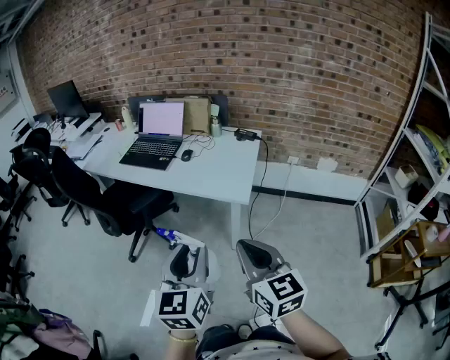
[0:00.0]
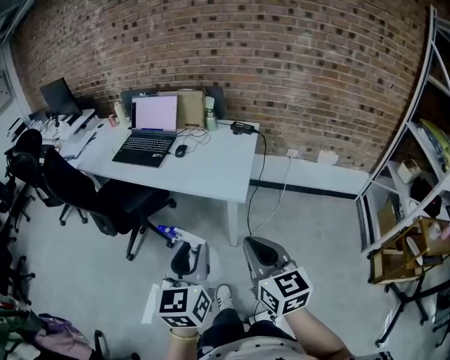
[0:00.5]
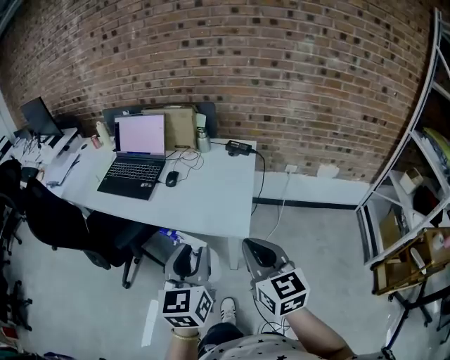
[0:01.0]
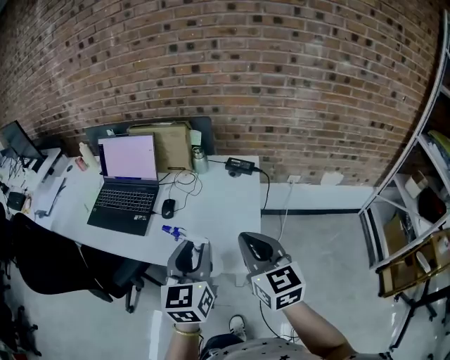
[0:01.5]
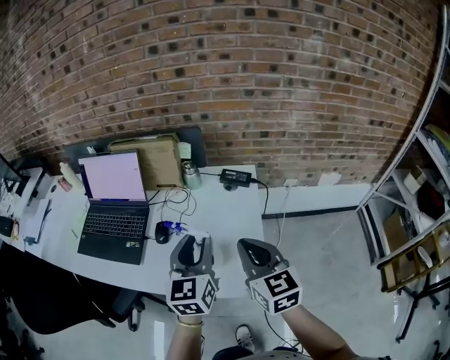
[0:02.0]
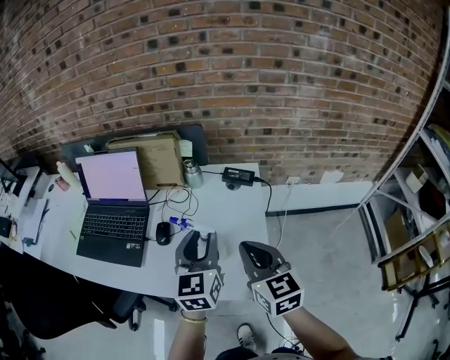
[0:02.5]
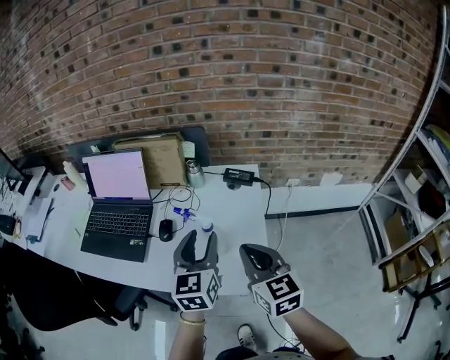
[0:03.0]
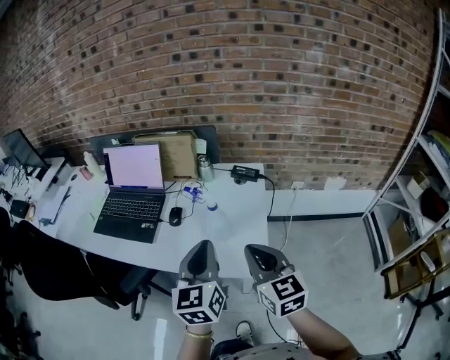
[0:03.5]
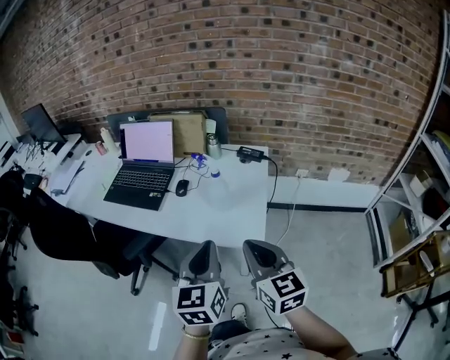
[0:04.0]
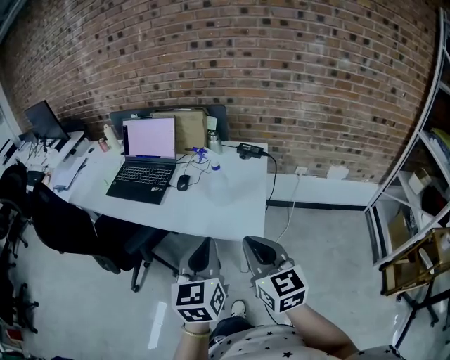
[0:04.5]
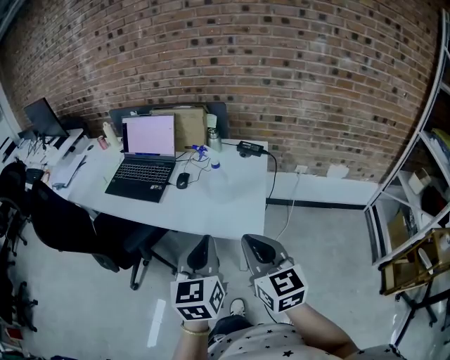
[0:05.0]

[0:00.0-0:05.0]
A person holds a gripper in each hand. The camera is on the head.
0:00.0 to 0:02.5: The two grippers travel together, forward, roughly 50 cm.
0:02.5 to 0:05.0: Both grippers move backward, roughly 25 cm. The left gripper closes.

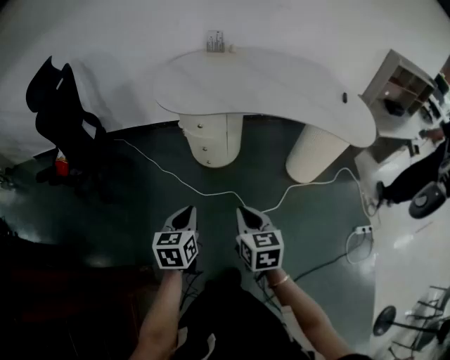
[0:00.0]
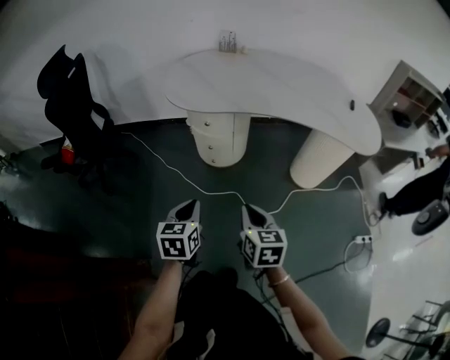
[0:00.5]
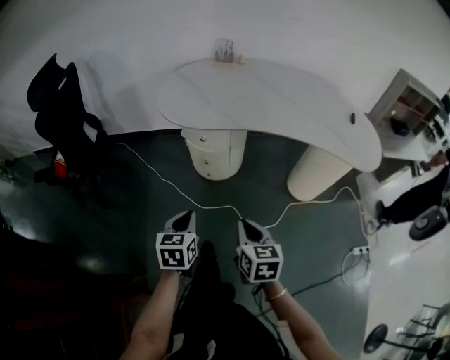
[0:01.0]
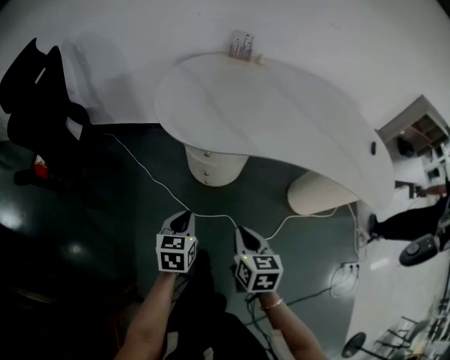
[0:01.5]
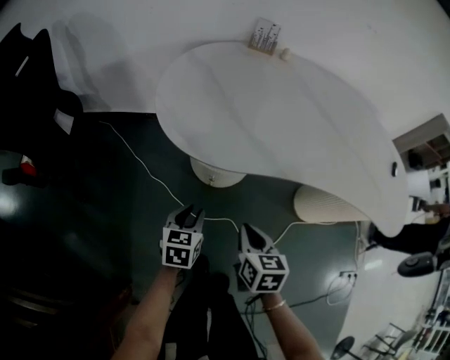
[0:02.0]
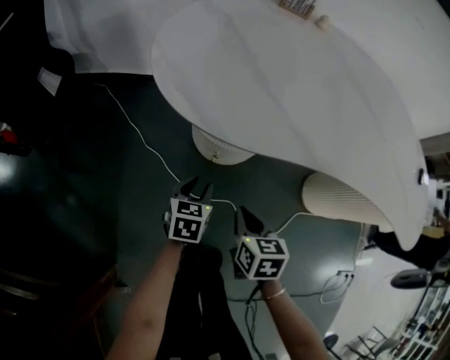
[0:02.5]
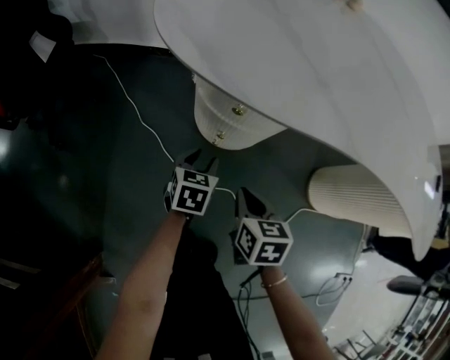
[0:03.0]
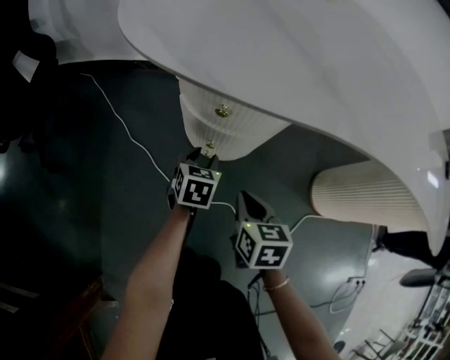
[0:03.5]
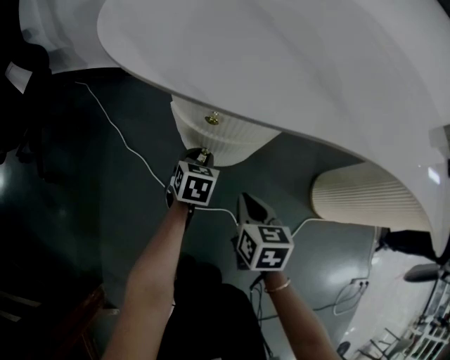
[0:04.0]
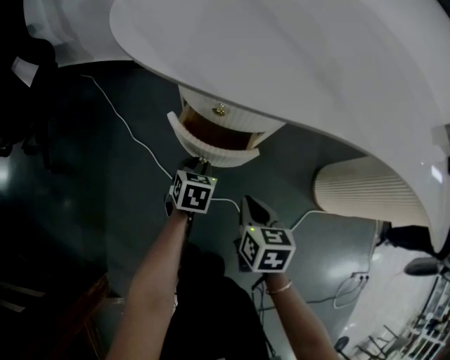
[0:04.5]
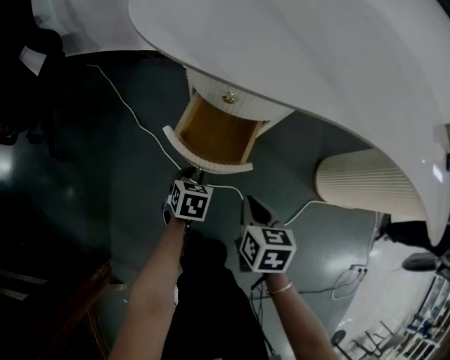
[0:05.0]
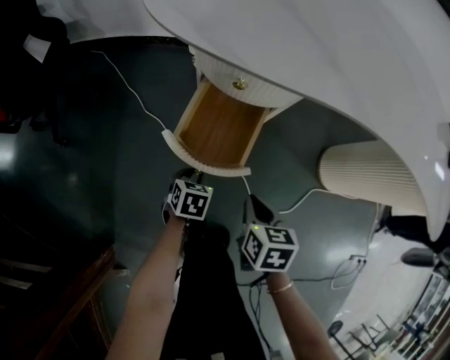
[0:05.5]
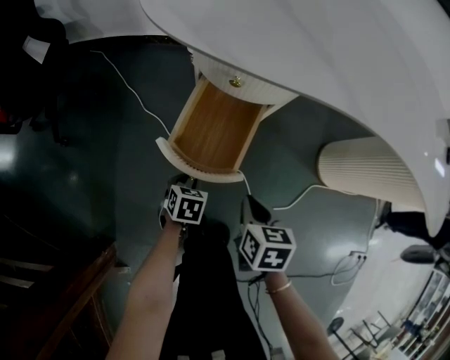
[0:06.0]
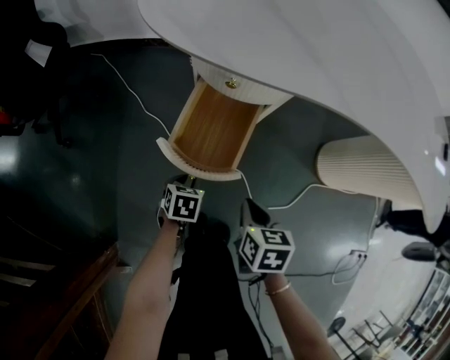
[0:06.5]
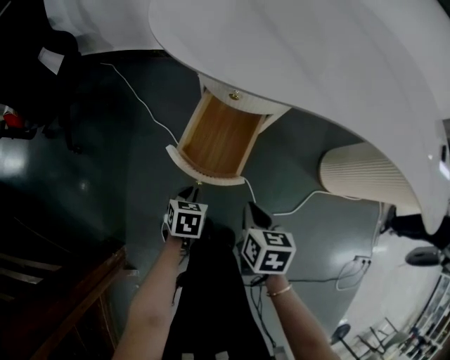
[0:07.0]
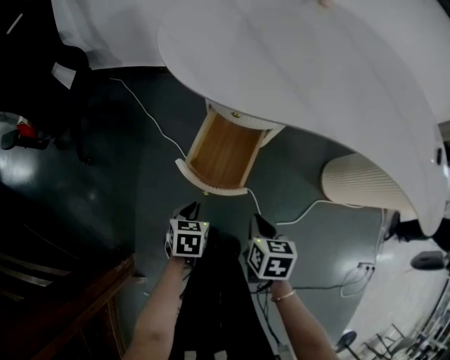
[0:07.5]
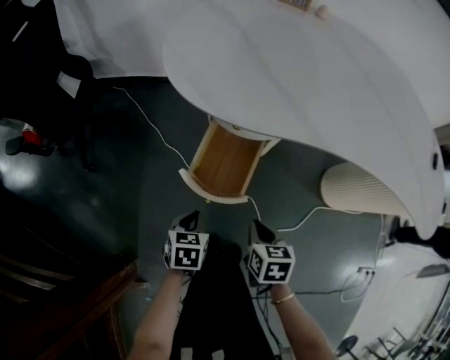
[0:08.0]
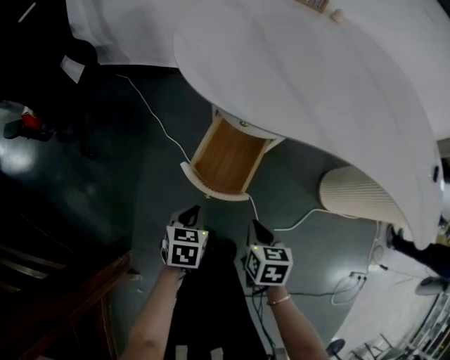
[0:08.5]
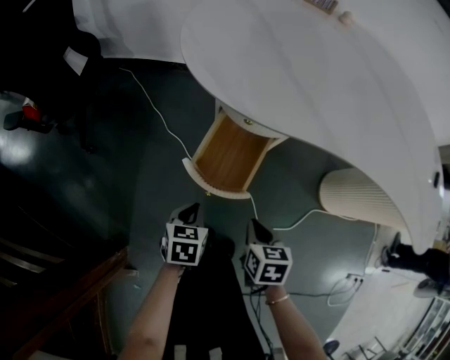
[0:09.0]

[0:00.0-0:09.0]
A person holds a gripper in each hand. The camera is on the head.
0:00.0 to 0:02.0: The right gripper is displaced forward by approximately 25 cm. The left gripper is displaced forward and downward by roughly 30 cm, and opens its fingers.
0:02.0 to 0:04.5: The two grippers go about 25 cm downward.
0:04.5 to 0:07.0: The right gripper shifts about 10 cm backward and upward. Meanwhile the left gripper goes approximately 20 cm backward.
0:07.0 to 0:09.0: The left gripper moves upward, some 10 cm.

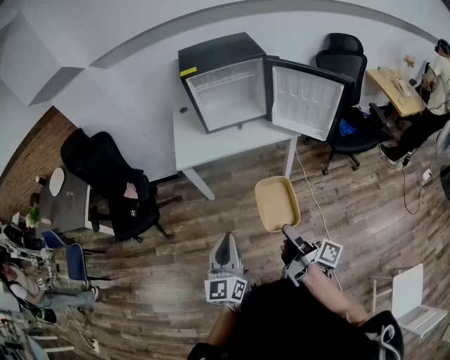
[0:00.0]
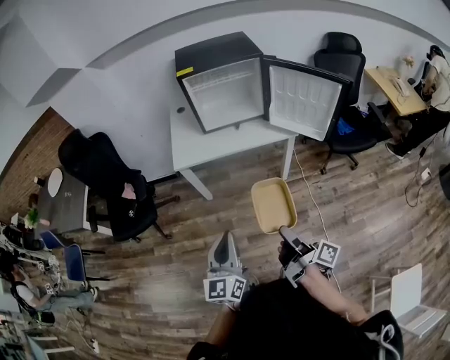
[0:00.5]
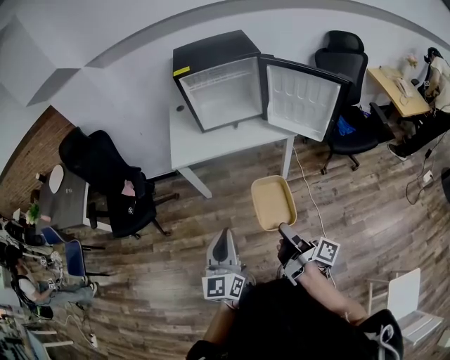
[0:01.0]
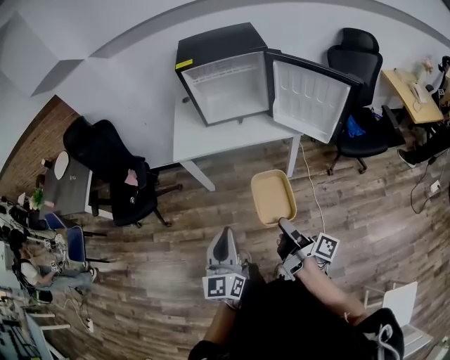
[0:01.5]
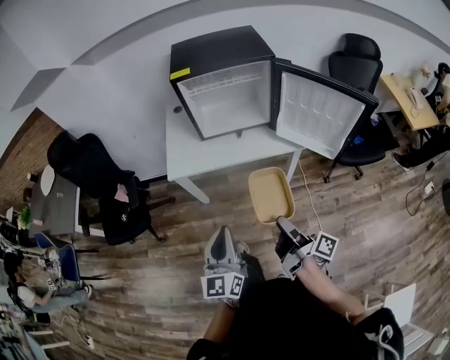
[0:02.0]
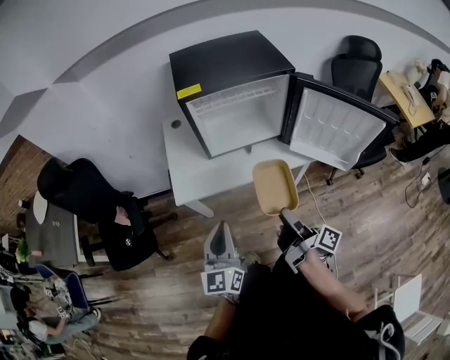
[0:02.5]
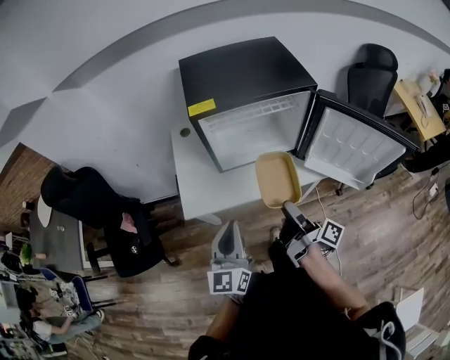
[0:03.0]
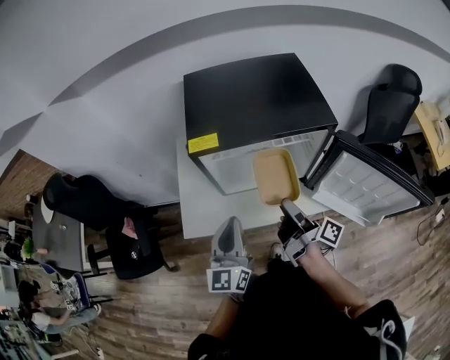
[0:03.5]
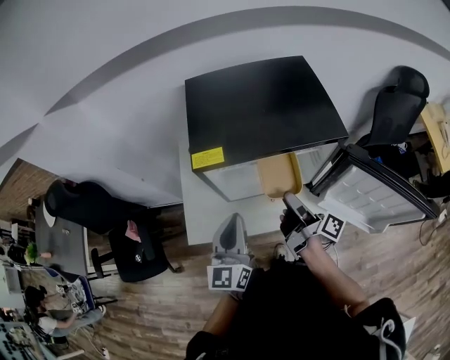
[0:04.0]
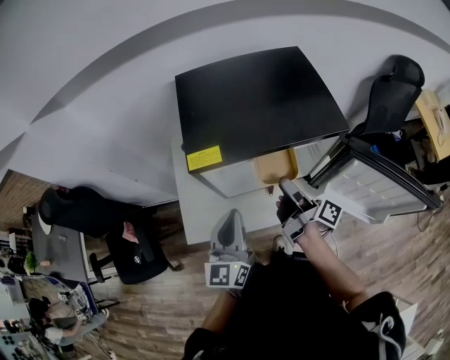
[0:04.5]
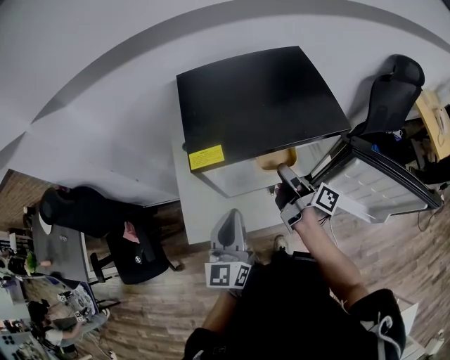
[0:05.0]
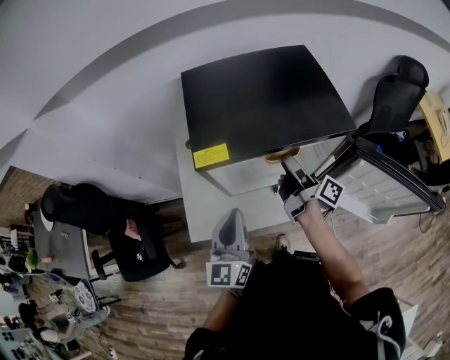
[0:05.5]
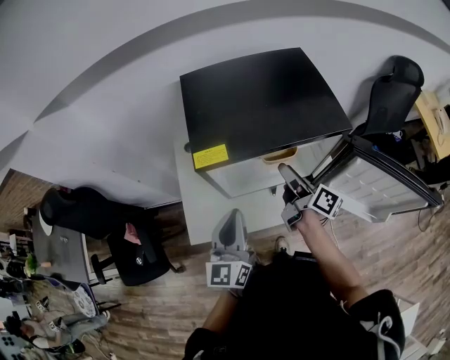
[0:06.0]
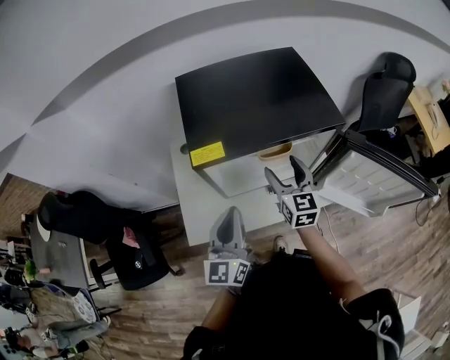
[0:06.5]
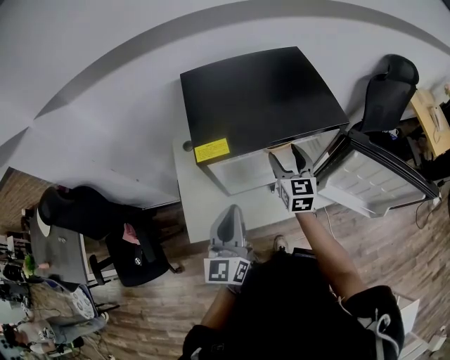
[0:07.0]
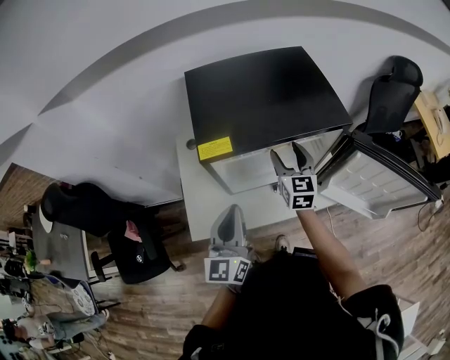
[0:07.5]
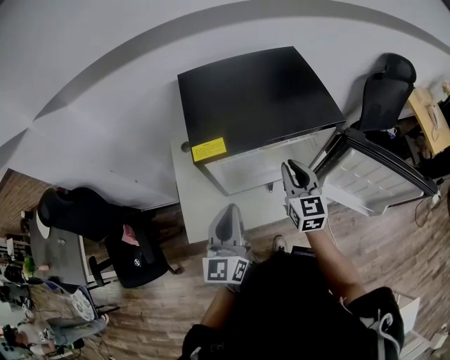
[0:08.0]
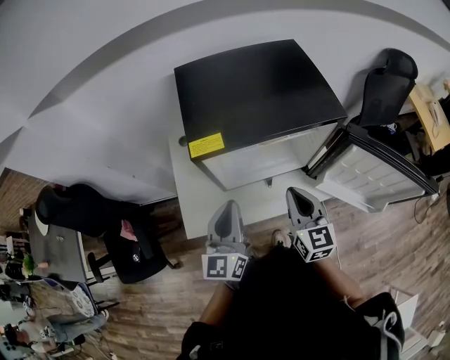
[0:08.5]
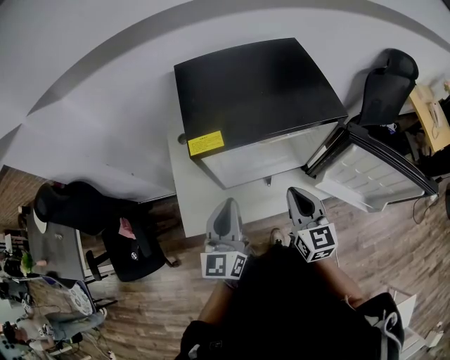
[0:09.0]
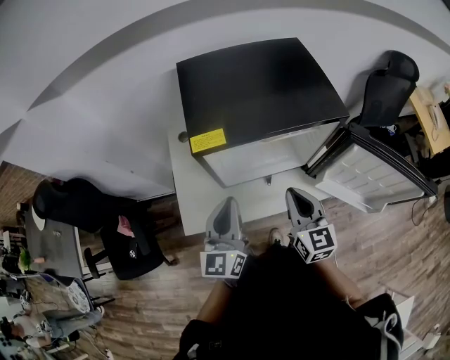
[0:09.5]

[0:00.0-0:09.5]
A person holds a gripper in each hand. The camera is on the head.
0:00.0 to 0:02.0: The two grippers go about 15 cm forward.
0:02.0 to 0:04.0: The two grippers travel together, forward, some 40 cm.
0:04.0 to 0:05.5: The right gripper goes some 10 cm forward.
0:05.5 to 0:07.5: The right gripper rotates around the line of its fingers by about 80 degrees, counterclockwise from behind.
0:07.5 to 0:09.5: The right gripper heads backward, covering roughly 15 cm, and closes up.

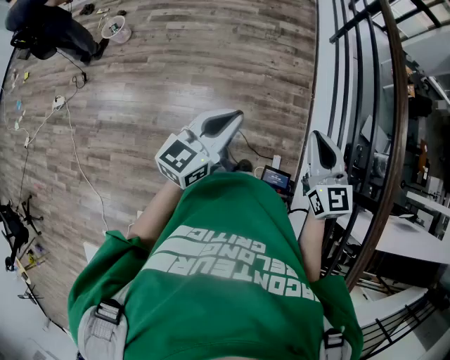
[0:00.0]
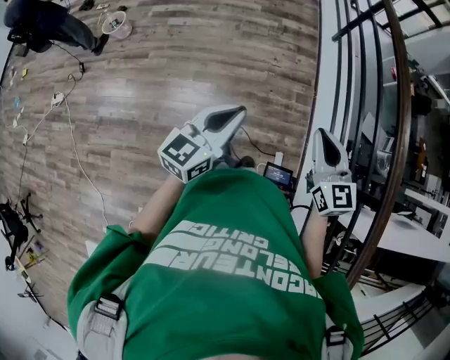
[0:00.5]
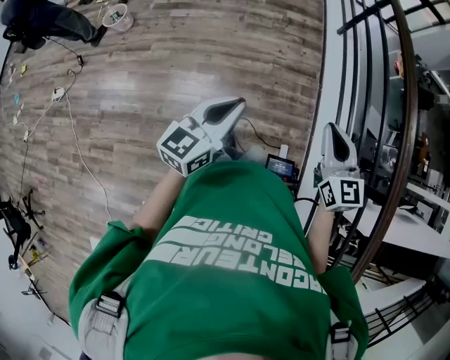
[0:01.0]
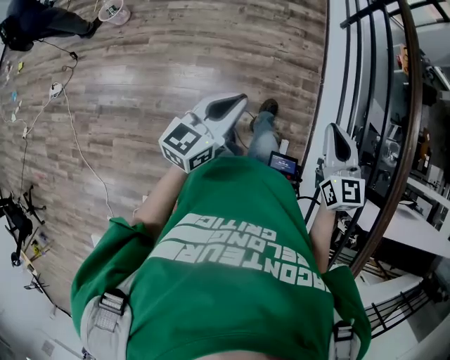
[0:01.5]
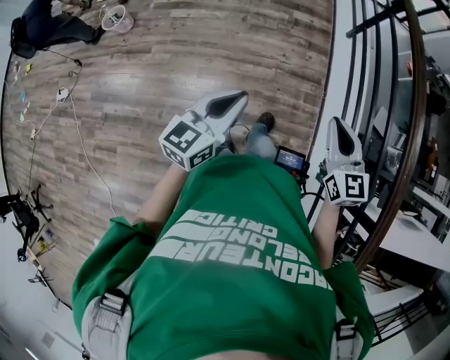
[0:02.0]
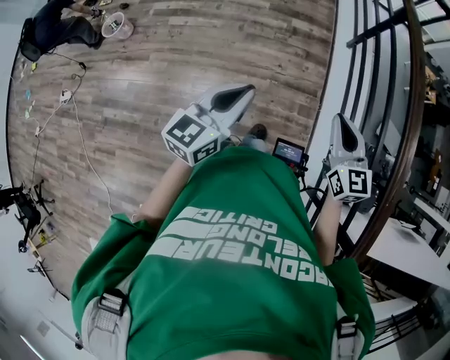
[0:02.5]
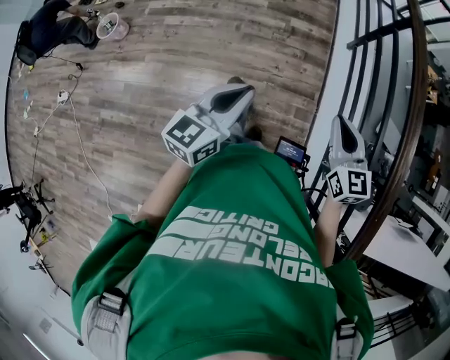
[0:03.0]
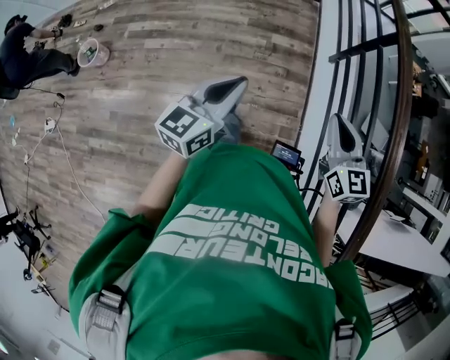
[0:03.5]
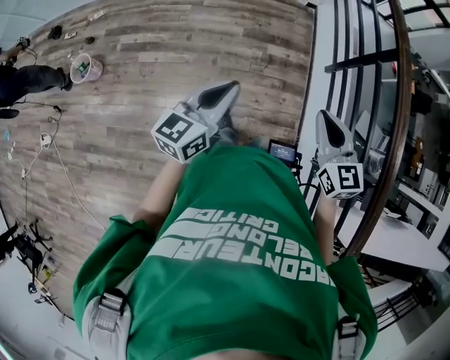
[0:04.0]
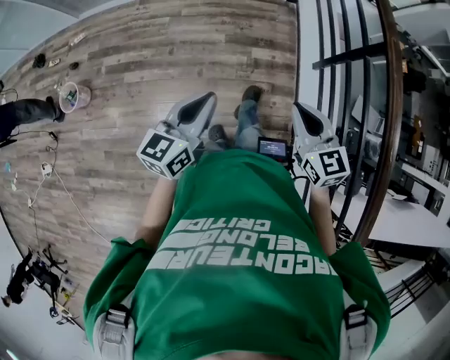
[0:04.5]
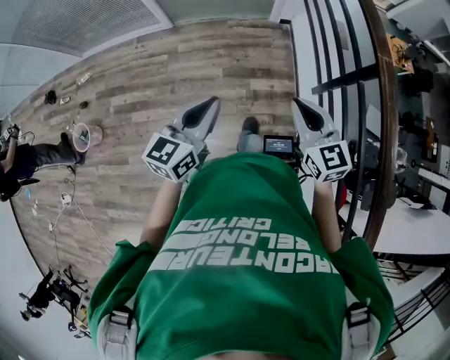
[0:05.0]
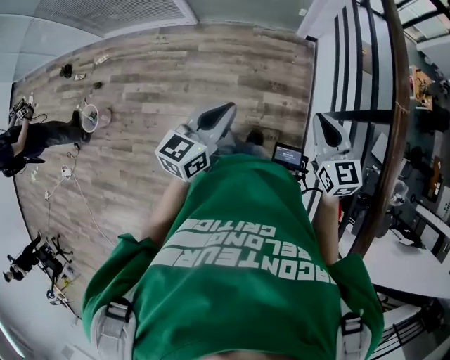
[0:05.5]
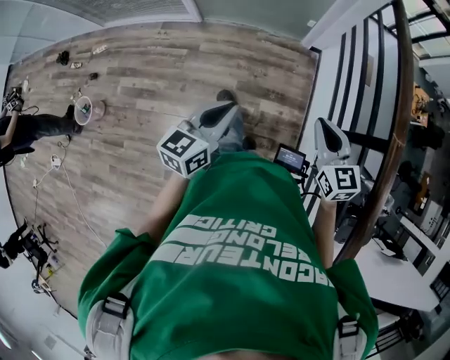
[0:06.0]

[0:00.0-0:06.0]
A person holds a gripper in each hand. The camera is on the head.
0:00.0 to 0:02.0: The grippers both shift forward by approximately 15 cm.
0:02.0 to 0:04.0: The two grippers travel together, forward, some 50 cm.
0:04.0 to 0:06.0: Both grippers travel together forward, roughly 40 cm.
